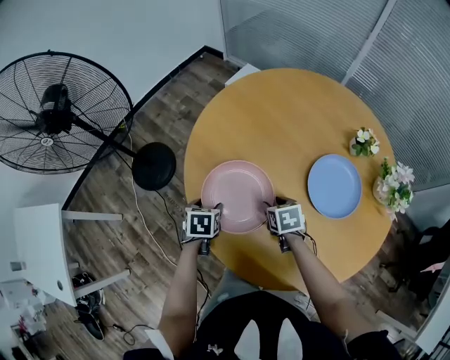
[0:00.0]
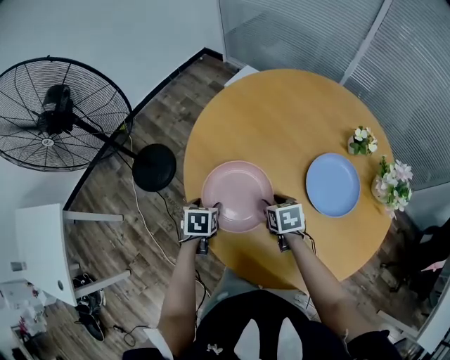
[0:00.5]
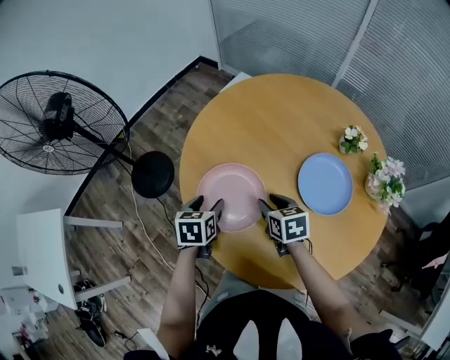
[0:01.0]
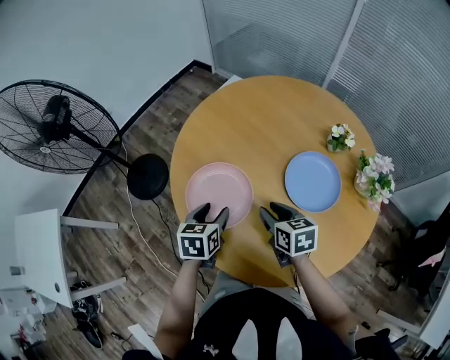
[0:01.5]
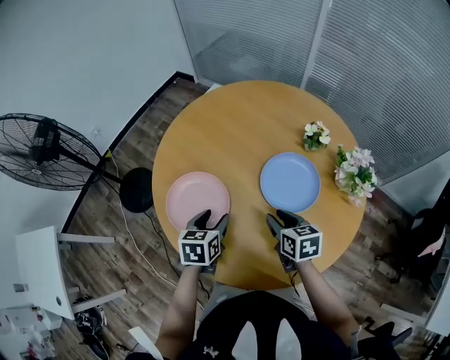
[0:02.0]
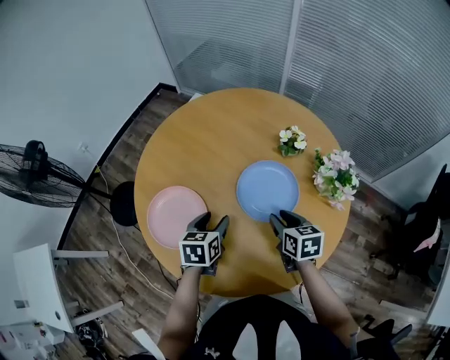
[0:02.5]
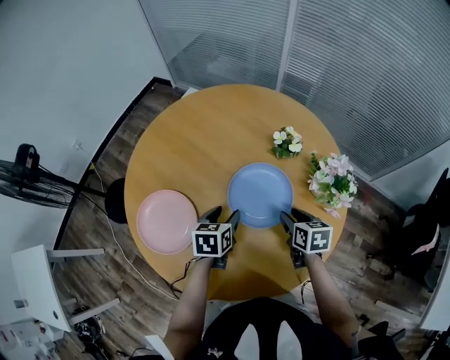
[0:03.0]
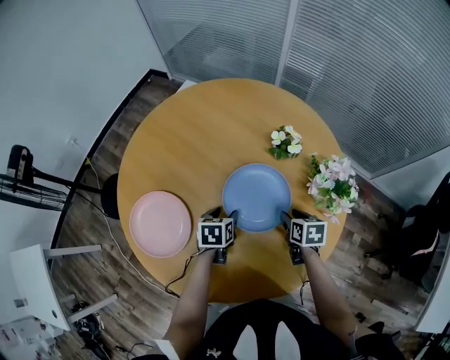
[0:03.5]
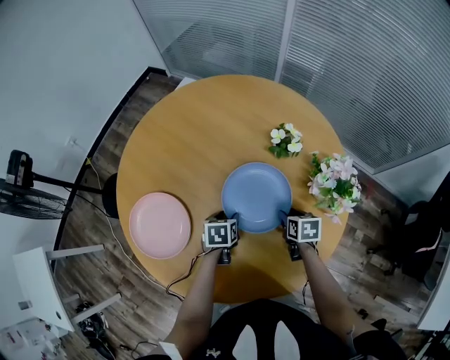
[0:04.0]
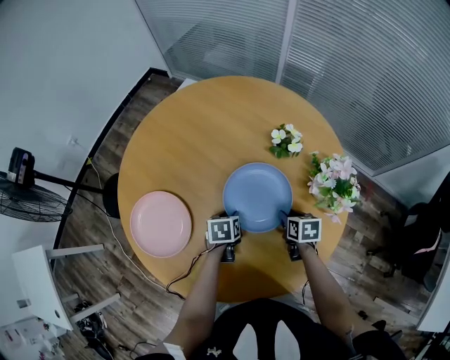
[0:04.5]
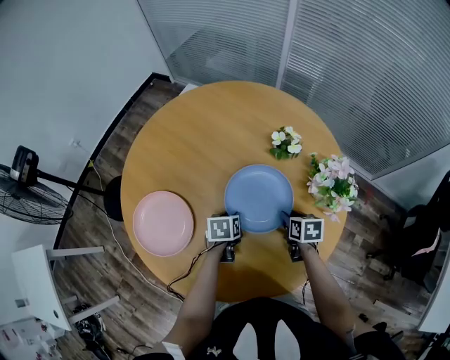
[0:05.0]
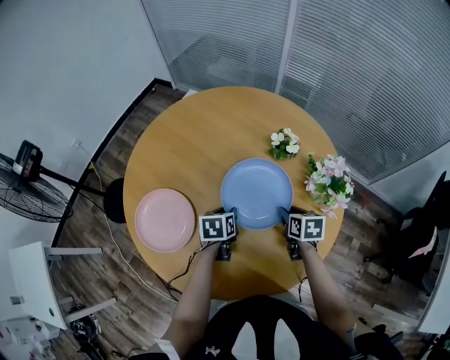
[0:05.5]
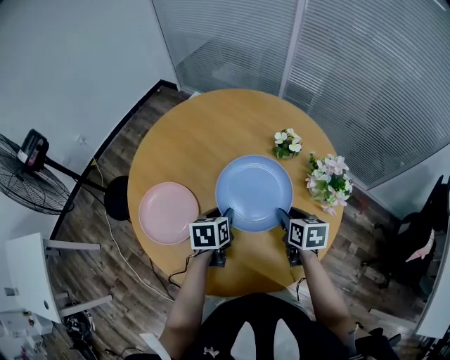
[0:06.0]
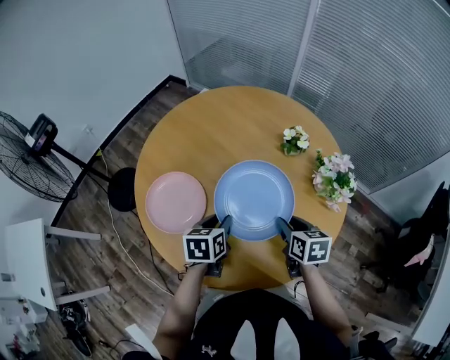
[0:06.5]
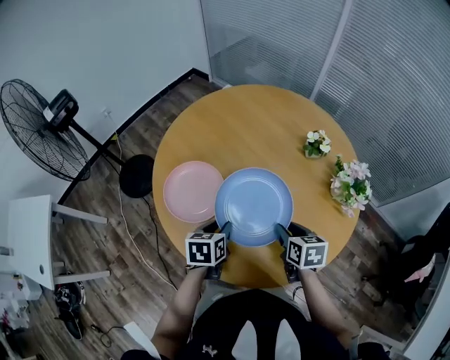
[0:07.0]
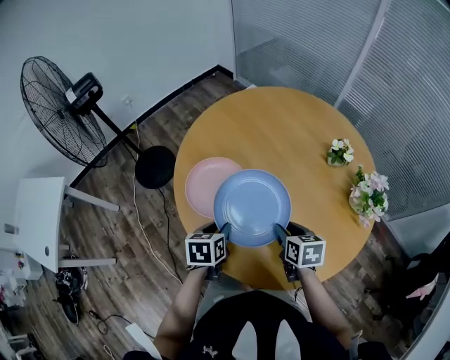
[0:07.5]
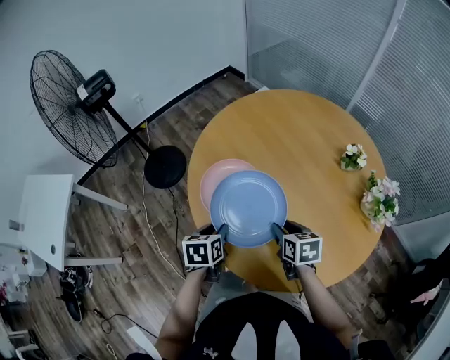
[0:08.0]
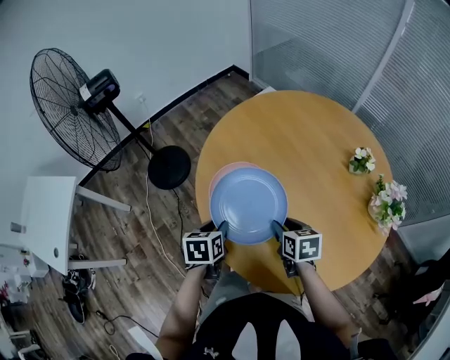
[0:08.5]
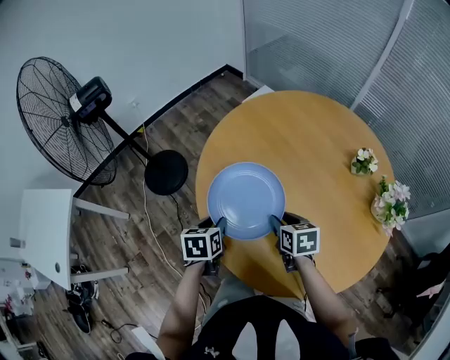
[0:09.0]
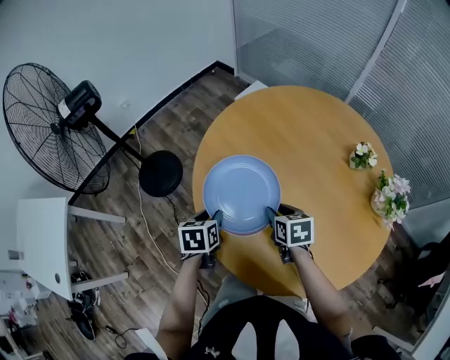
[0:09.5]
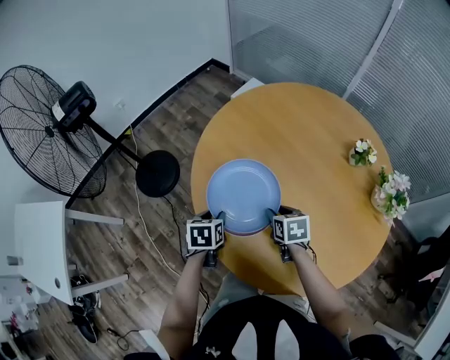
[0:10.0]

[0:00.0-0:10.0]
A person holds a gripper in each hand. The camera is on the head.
0:00.0 to 0:02.0: The left gripper travels to the right and upward by roughly 20 cm, and rotates some 20 degrees, while the right gripper travels to the right, upward and backward by approximately 20 cm, and changes its angle by about 20 degrees.
0:02.0 to 0:04.0: The two grippers go about 25 cm to the right, downward and forward. The right gripper swivels roughly 20 degrees.
0:04.0 to 0:06.0: The two grippers go some 15 cm upward.
0:06.0 to 0:08.0: The left gripper shifts roughly 25 cm to the left and backward. The right gripper travels to the left by some 25 cm, and swivels roughly 20 degrees.
0:08.0 to 0:10.0: Both grippers move forward, to the left and downward, approximately 15 cm.

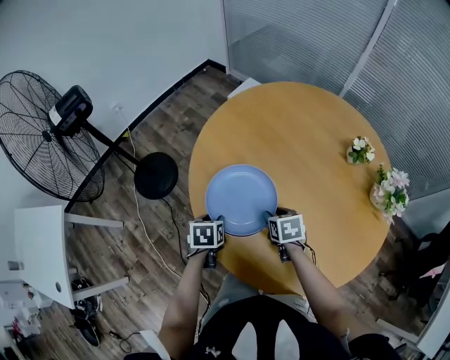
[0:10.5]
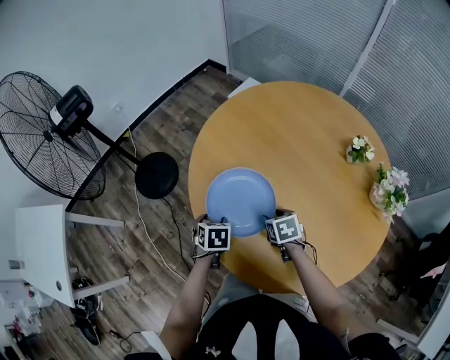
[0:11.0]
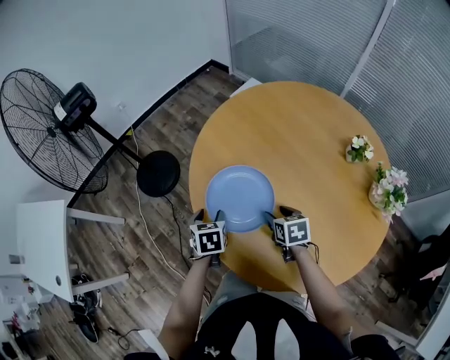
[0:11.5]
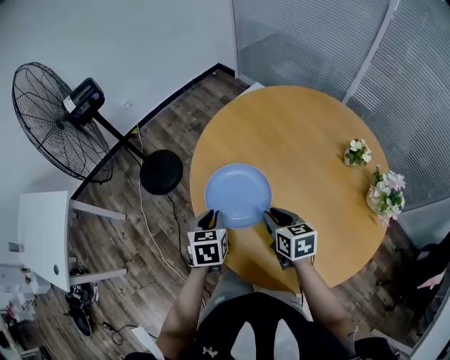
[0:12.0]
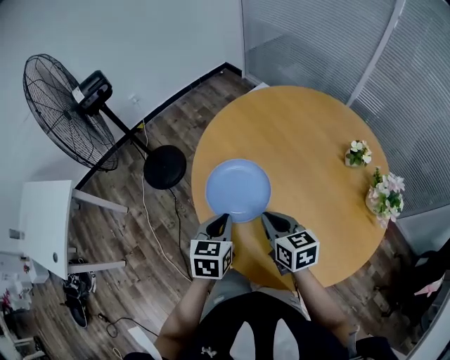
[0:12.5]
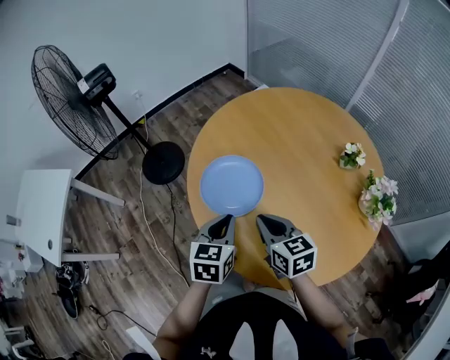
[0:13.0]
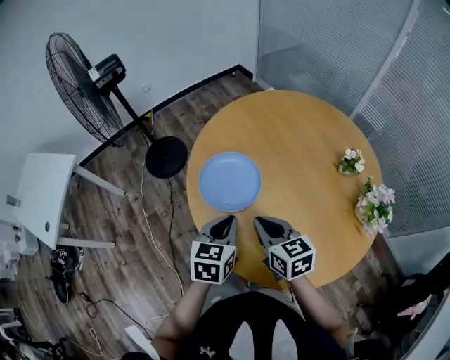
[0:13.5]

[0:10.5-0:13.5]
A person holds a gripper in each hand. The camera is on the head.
0:10.5 to 0:12.0: Both grippers move upward, some 10 cm. The right gripper swivels roughly 20 degrees.
0:12.0 to 0:13.5: The right gripper goes about 10 cm upward and backward, and closes its fingers, while the left gripper moves backward, to the right and upward, roughly 15 cm.

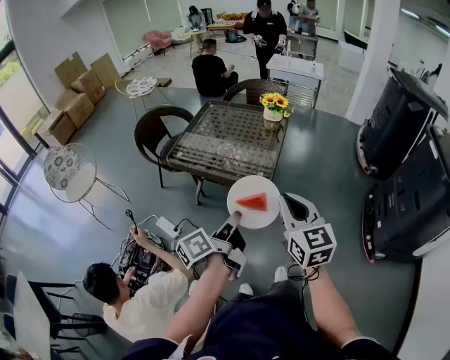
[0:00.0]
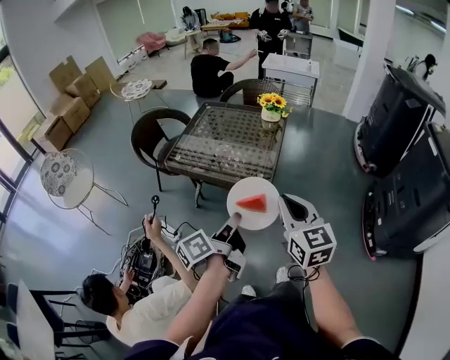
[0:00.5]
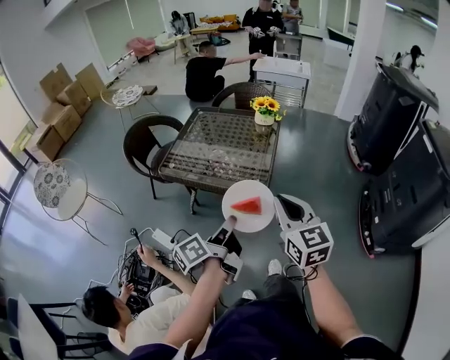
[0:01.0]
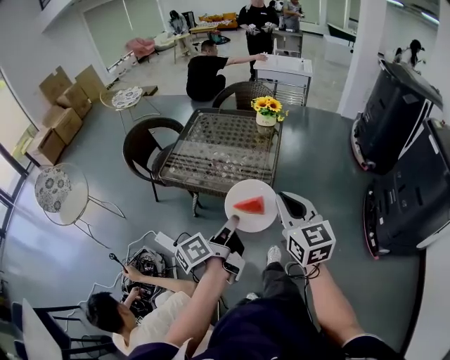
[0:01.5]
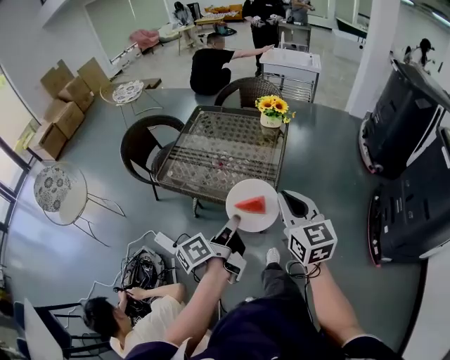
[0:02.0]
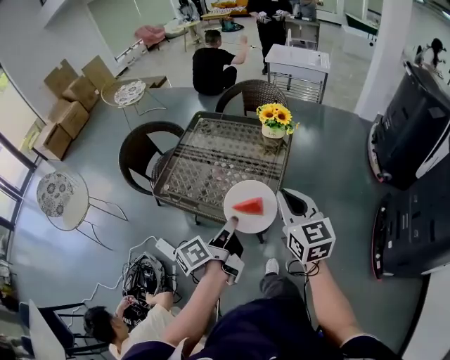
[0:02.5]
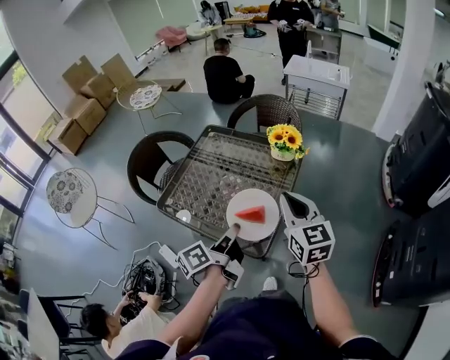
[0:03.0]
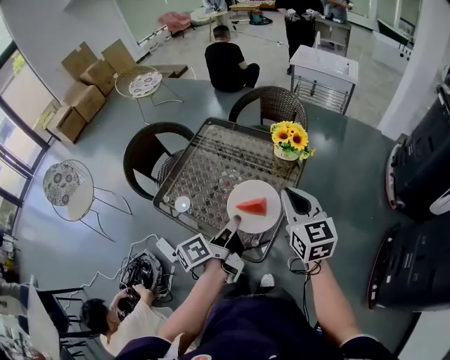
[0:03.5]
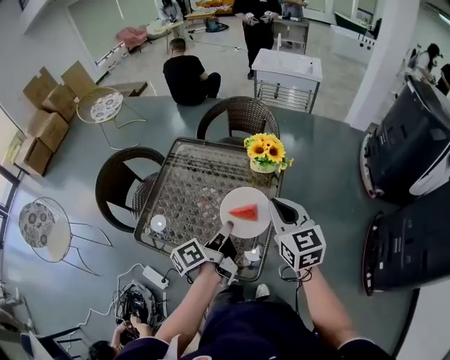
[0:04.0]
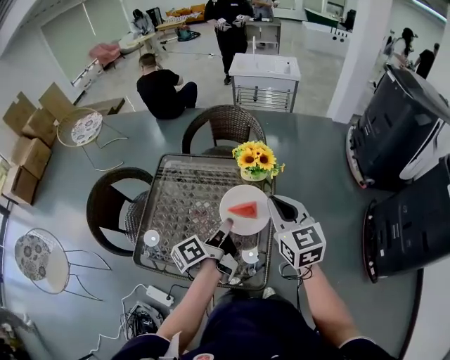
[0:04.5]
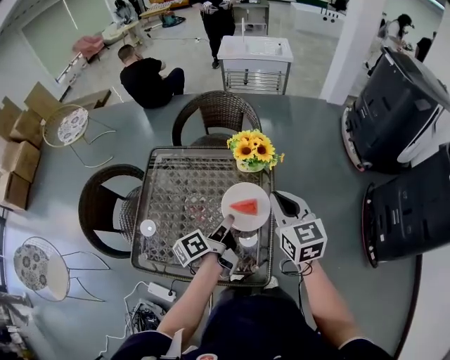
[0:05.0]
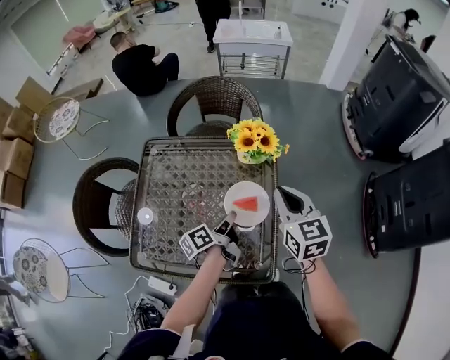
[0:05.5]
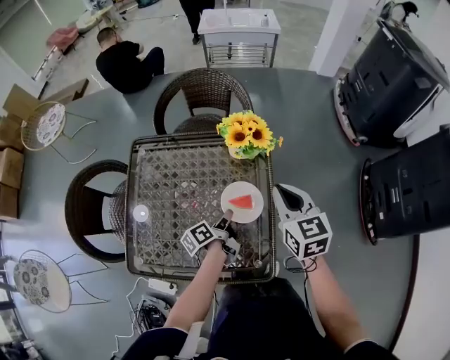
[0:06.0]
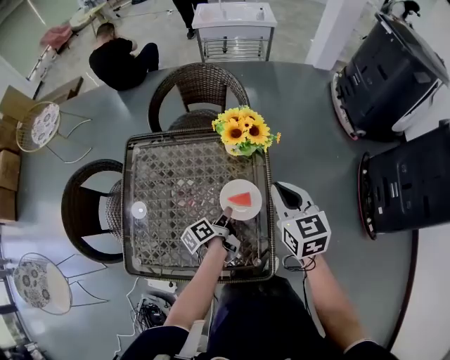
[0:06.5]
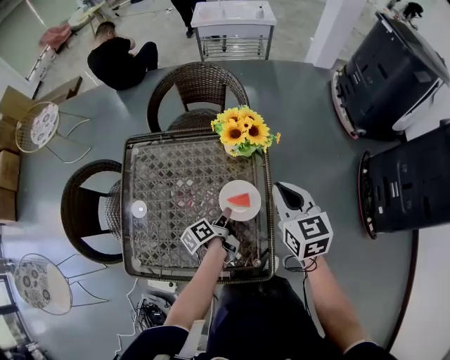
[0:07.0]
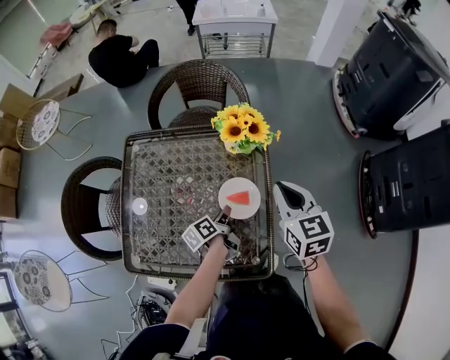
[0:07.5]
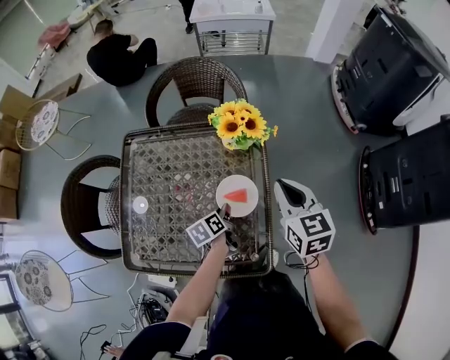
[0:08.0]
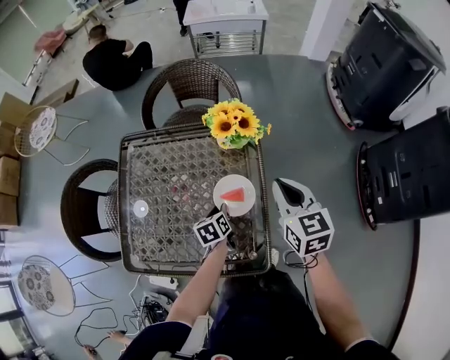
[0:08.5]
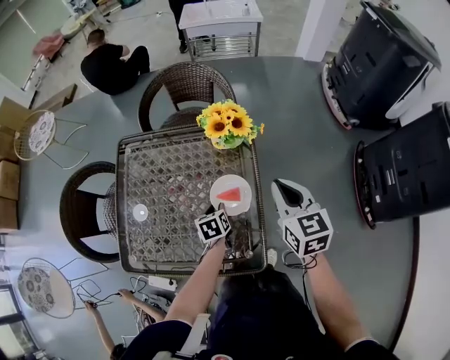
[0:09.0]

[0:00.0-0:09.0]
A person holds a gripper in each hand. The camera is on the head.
0:00.0 to 0:02.0: Both grippers travel together forward, roughly 15 cm.
0:02.0 to 0:04.5: Both grippers move forward, roughly 30 cm.
0:04.5 to 0:07.0: The right gripper is displaced downward by about 10 cm; the left gripper goes approximately 25 cm downward, and rotates approximately 20 degrees.
0:07.0 to 0:09.0: The left gripper twists approximately 40 degrees clockwise, seen from behind, and opens.

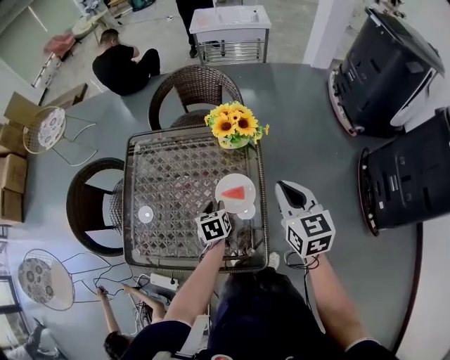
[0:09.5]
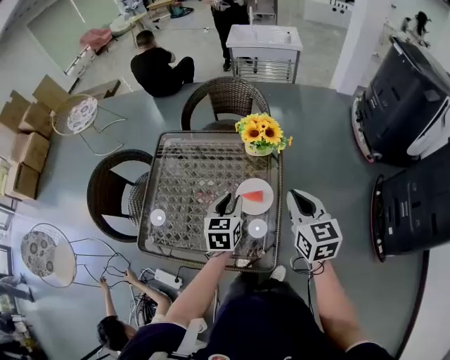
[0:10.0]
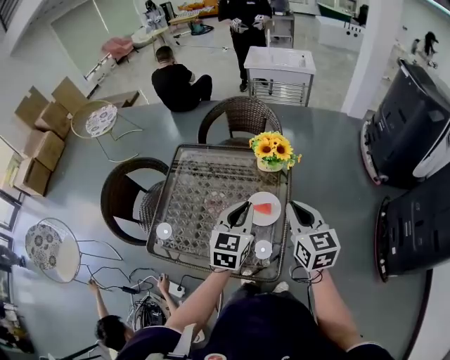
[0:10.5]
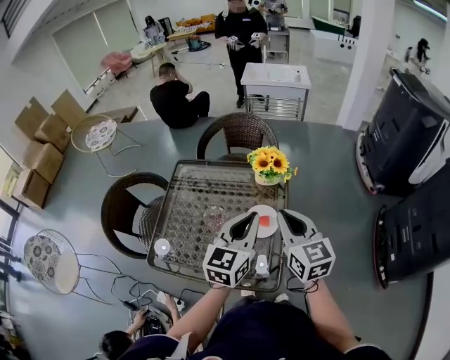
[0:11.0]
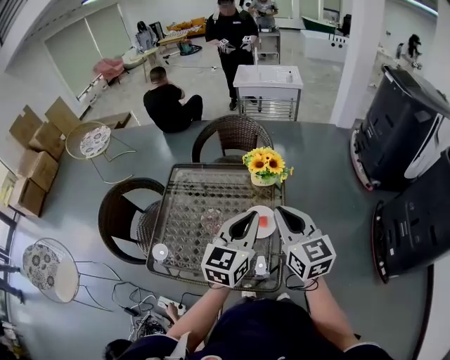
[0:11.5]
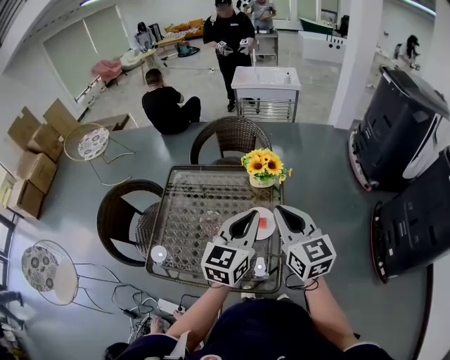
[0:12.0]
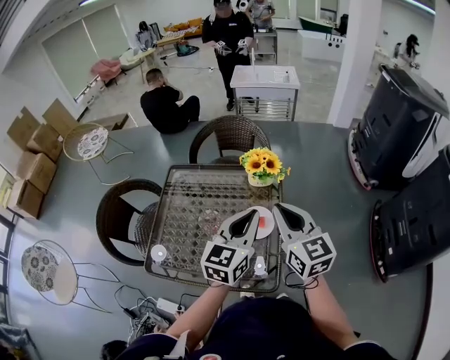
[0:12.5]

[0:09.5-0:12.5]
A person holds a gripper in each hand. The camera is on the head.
0:09.5 to 0:11.0: The right gripper goes approximately 10 cm upward and to the left. The left gripper is displaced upward by roughly 30 cm, angles its fingers upward, by some 40 degrees, and closes up.
0:11.0 to 0:12.5: The grippers stay close to where they were, moving slightly.

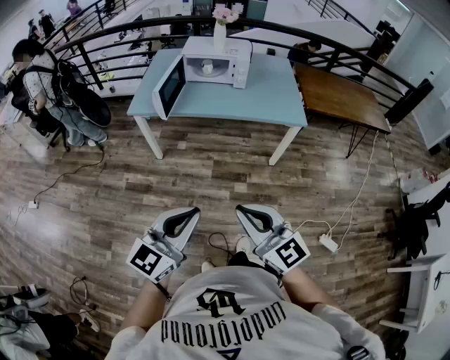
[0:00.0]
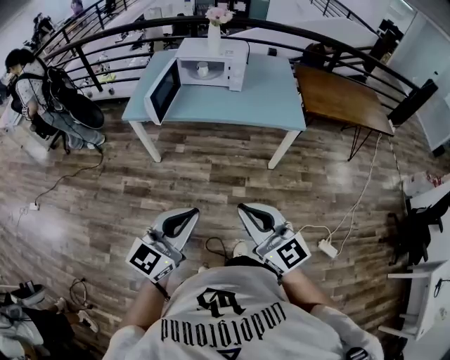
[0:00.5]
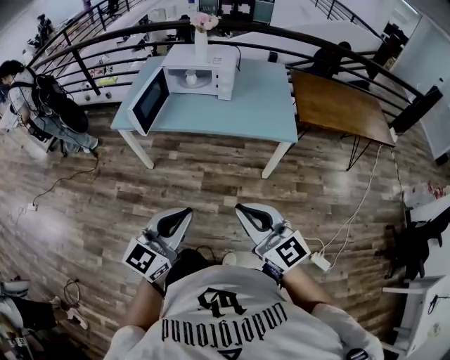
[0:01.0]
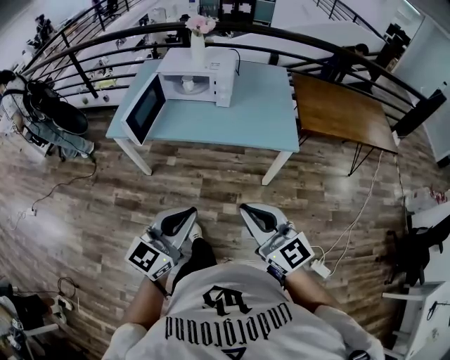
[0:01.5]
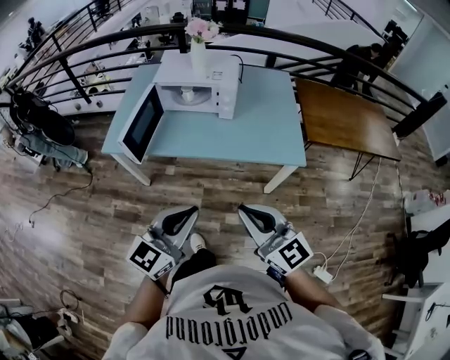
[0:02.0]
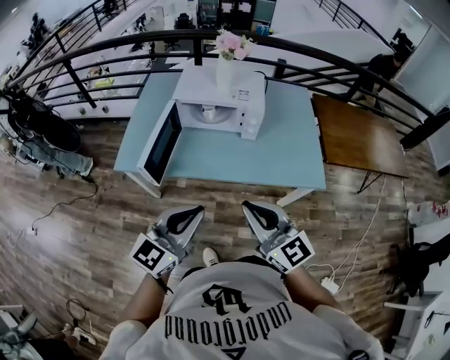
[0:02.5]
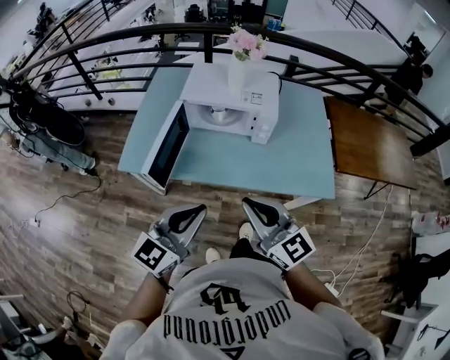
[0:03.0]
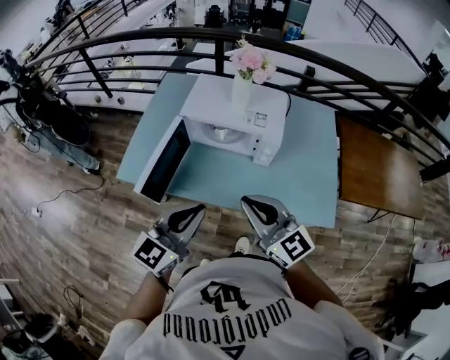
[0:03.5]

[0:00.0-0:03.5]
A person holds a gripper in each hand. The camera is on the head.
0:00.0 to 0:02.0: The left gripper shifts roughly 35 cm forward, while the right gripper goes roughly 35 cm forward and to the right.
0:02.0 to 0:03.5: The grippers both shift forward by some 30 cm.
